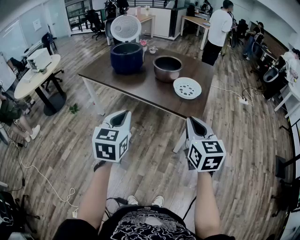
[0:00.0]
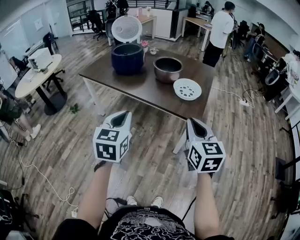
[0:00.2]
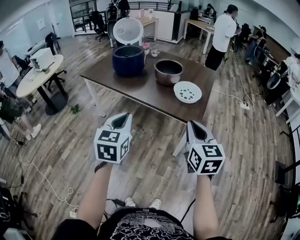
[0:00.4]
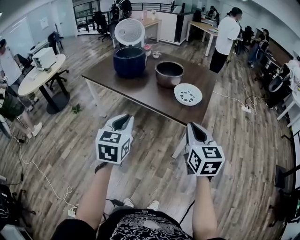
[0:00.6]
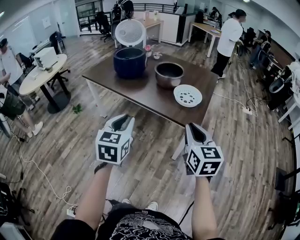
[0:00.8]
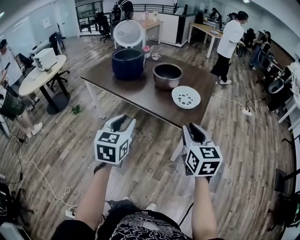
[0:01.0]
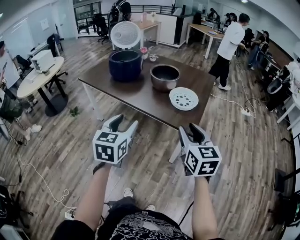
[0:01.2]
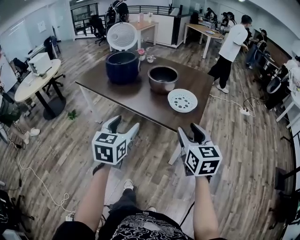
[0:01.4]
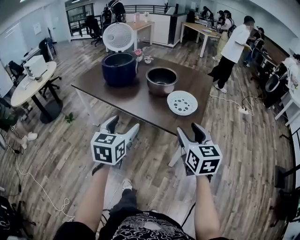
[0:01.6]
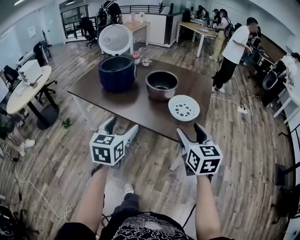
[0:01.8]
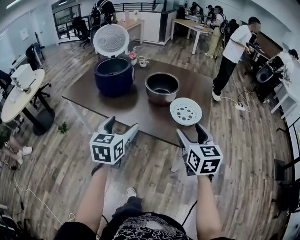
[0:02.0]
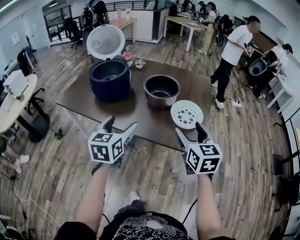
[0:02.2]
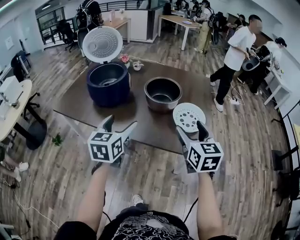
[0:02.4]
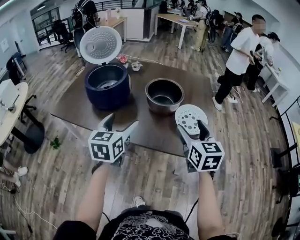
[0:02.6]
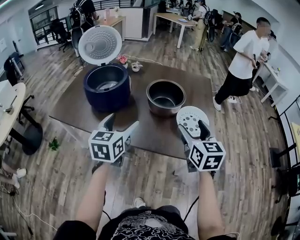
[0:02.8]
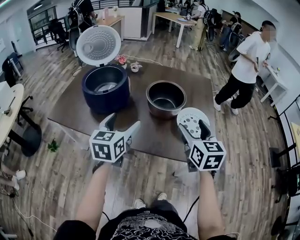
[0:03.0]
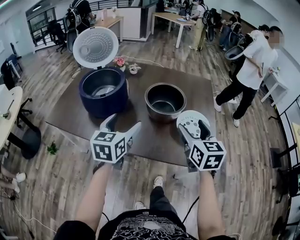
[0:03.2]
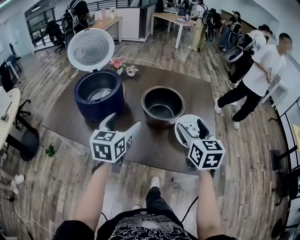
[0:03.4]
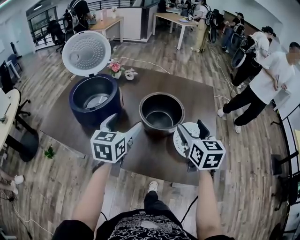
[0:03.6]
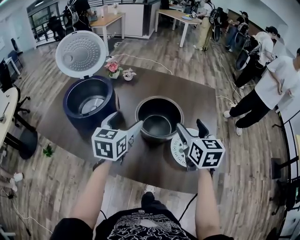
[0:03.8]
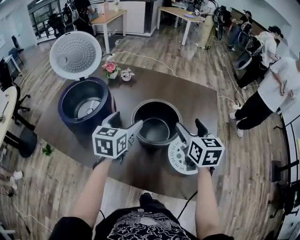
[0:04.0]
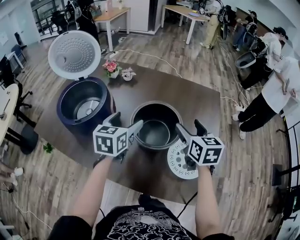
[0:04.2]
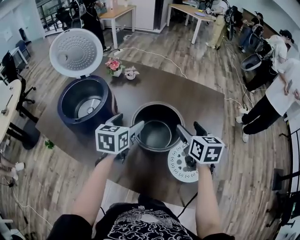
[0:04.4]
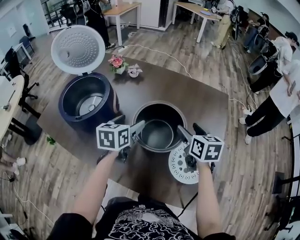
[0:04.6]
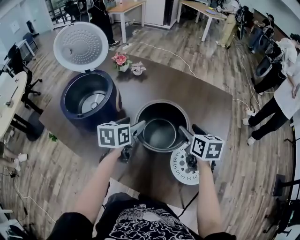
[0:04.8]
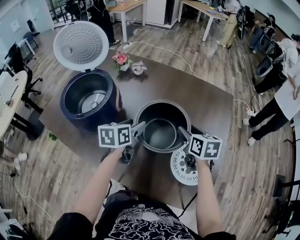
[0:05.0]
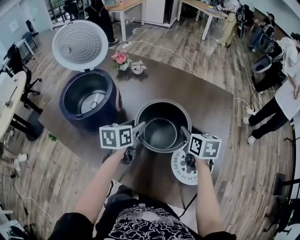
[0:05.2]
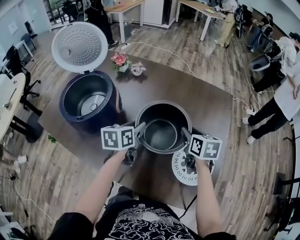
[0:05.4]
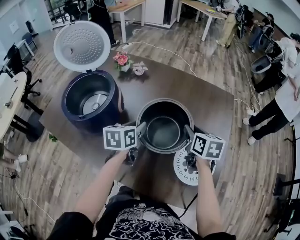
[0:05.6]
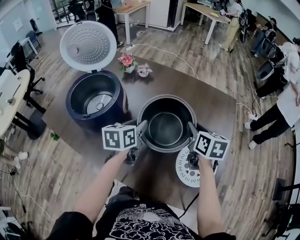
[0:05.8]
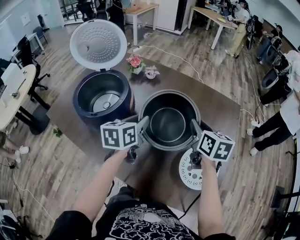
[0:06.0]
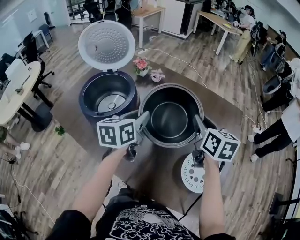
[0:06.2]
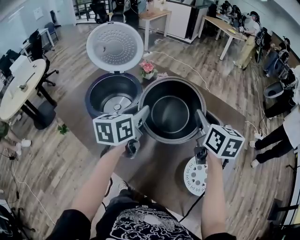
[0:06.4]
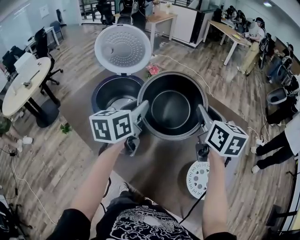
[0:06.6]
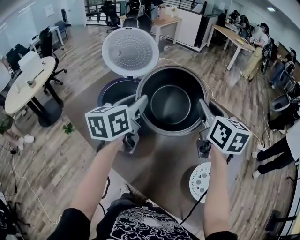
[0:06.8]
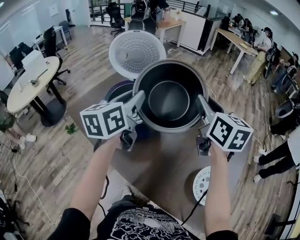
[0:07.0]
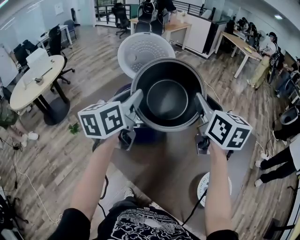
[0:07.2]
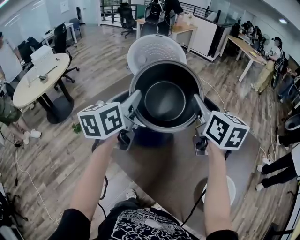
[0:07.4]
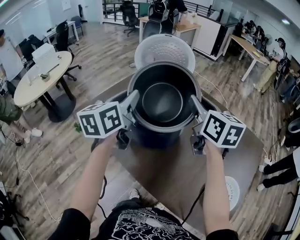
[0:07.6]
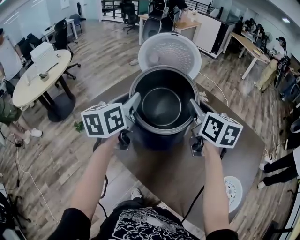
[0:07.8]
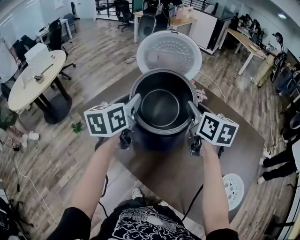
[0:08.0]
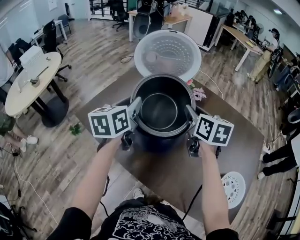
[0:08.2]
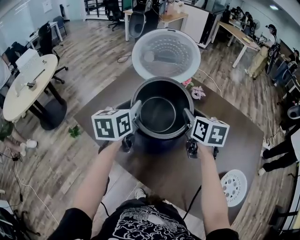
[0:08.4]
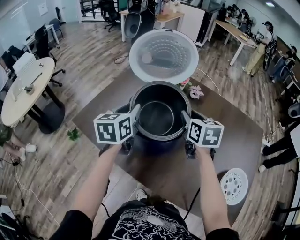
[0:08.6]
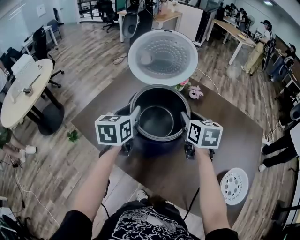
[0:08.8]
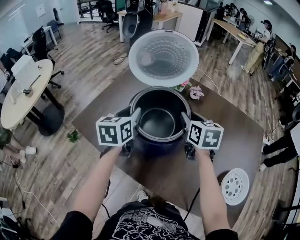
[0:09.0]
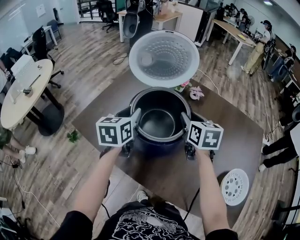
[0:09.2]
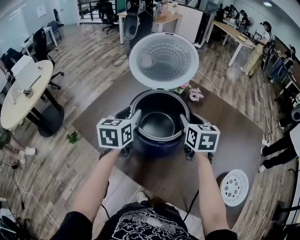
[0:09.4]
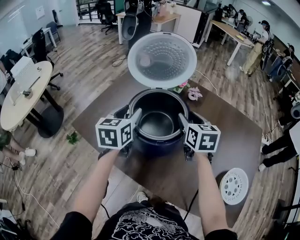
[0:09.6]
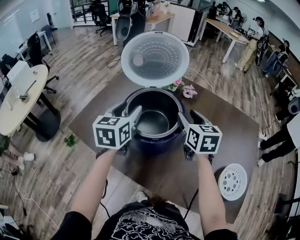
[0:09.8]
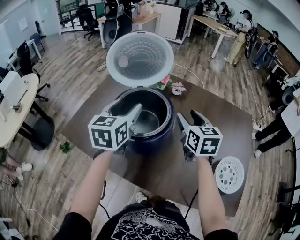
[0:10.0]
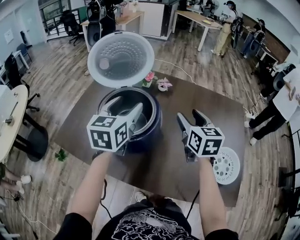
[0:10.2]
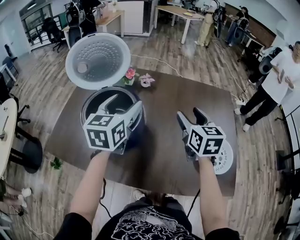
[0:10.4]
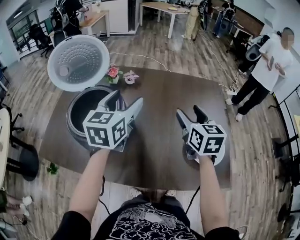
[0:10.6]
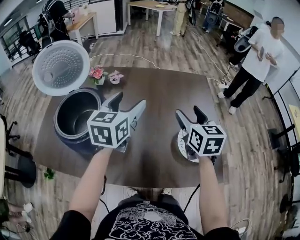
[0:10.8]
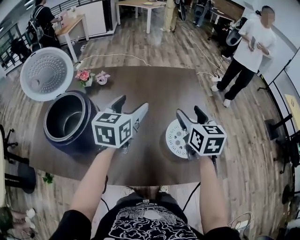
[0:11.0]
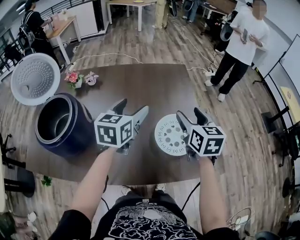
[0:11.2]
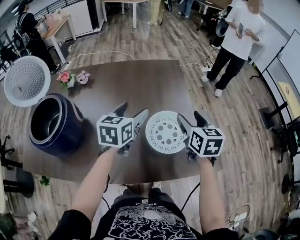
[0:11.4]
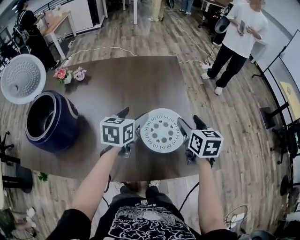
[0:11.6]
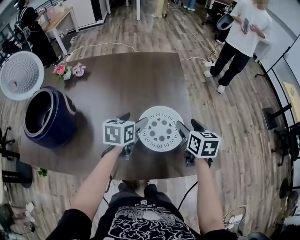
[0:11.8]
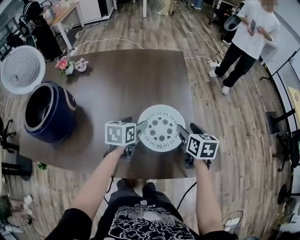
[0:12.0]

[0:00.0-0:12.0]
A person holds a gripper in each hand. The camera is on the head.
0:00.0 to 0:01.6: Both grippers travel together forward, roughly 10 cm. The left gripper opens up. The right gripper opens.
0:01.6 to 0:03.0: The grippers both shift forward and to the left by about 30 cm.
0:03.0 to 0:04.4: Both grippers move forward, approximately 25 cm.
0:04.4 to 0:06.0: The left gripper closes its fingers, while the right gripper goes downward and returns, roughly 5 cm each way, and closes up.
0:06.0 to 0:07.6: Both grippers travel together to the left and upward, about 35 cm. The right gripper swivels some 30 degrees, while the left gripper changes its angle by some 30 degrees.
0:07.6 to 0:09.0: The right gripper shifts some 15 cm downward, and turns by about 20 degrees. The left gripper heads downward and forward, covering some 15 cm.
0:09.0 to 0:10.4: The left gripper moves to the right and upward, about 20 cm, turns by about 30 degrees, and opens its fingers, while the right gripper goes about 20 cm to the right and backward, changes its angle by some 20 degrees, and opens.
0:10.4 to 0:12.0: Both grippers travel together to the right and downward, some 40 cm. The left gripper changes its angle by about 40 degrees, while the right gripper rotates roughly 30 degrees.

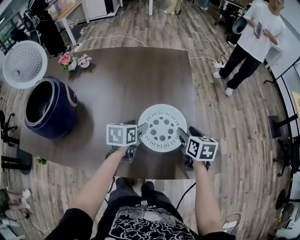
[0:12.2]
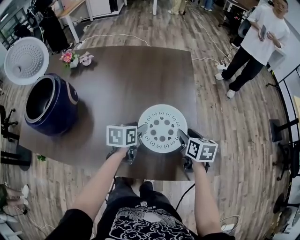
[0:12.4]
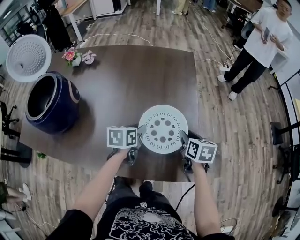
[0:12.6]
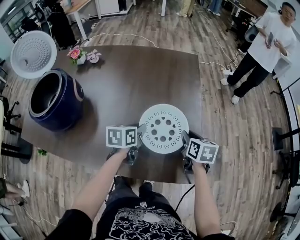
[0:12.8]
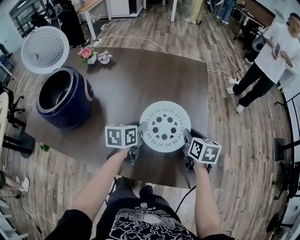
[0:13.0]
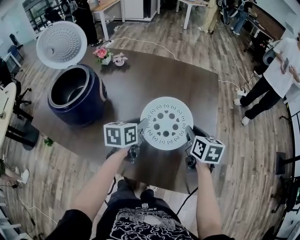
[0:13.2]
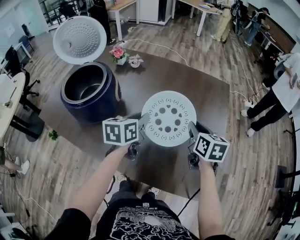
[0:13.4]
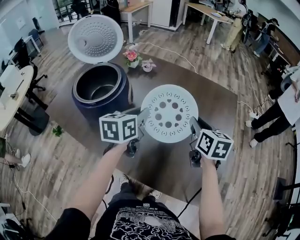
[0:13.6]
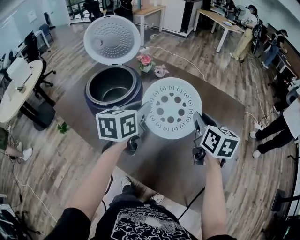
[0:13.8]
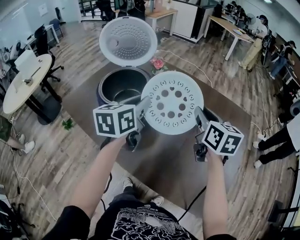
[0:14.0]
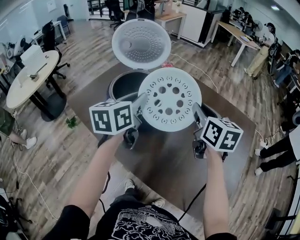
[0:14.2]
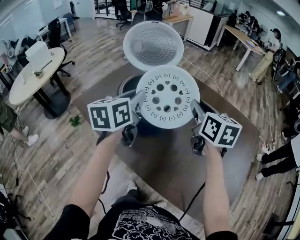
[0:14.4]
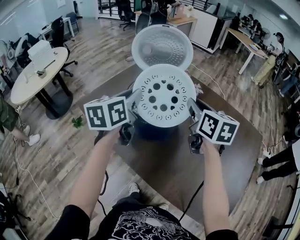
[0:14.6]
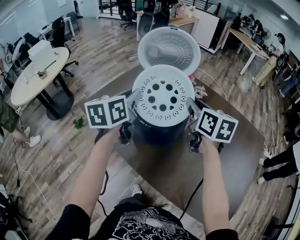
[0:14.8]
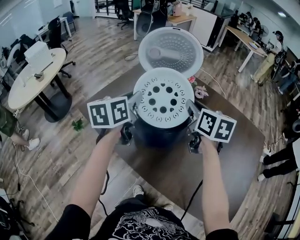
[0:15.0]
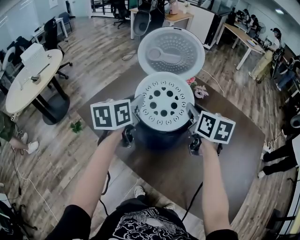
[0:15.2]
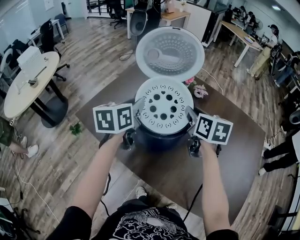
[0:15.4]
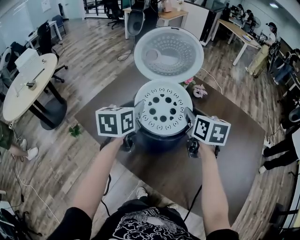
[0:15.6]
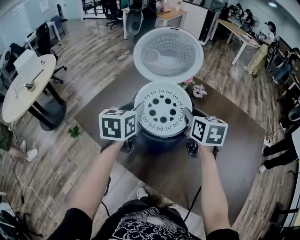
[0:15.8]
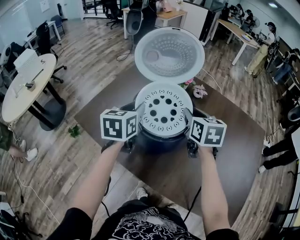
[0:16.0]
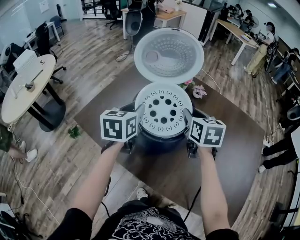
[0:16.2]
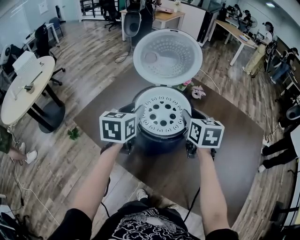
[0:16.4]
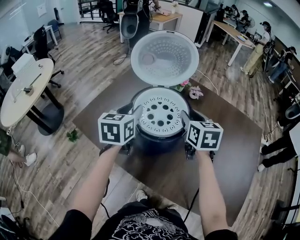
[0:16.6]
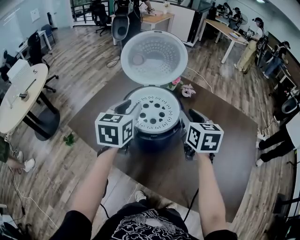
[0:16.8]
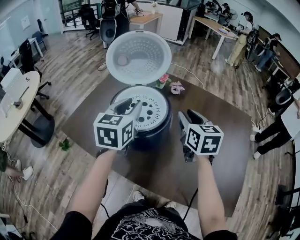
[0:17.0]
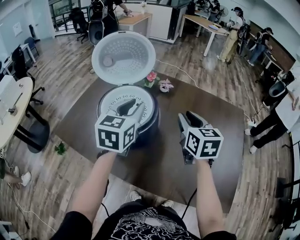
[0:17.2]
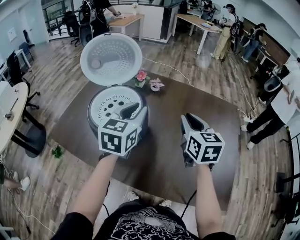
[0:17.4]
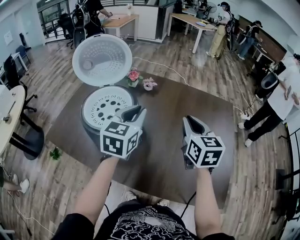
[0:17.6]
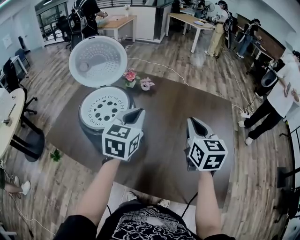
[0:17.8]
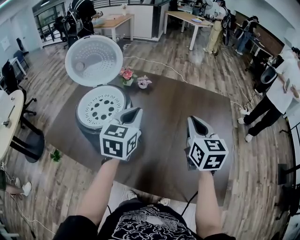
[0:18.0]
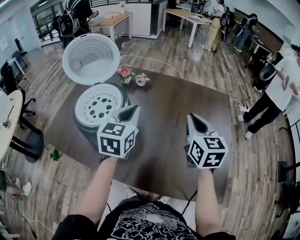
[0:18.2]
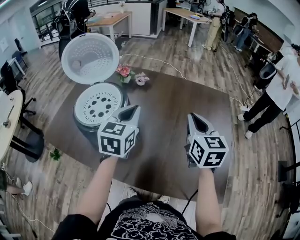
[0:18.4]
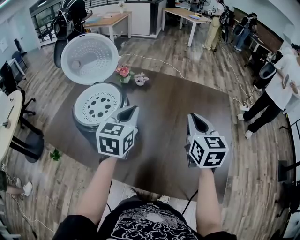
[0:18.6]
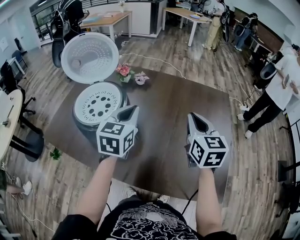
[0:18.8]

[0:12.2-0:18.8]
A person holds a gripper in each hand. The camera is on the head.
0:12.2 to 0:13.8: The left gripper moves about 35 cm, turns by roughly 40 degrees, and closes. The right gripper moves approximately 35 cm, swivels some 30 degrees, and closes its fingers.
0:13.8 to 0:15.4: Both grippers travel together to the left and forward, some 30 cm.
0:15.4 to 0:17.2: The left gripper goes some 15 cm to the right, and changes its angle by about 30 degrees, while the right gripper heads to the right and backward, covering approximately 15 cm.
0:17.2 to 0:18.8: Both grippers travel together to the right, approximately 15 cm.

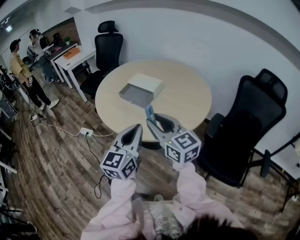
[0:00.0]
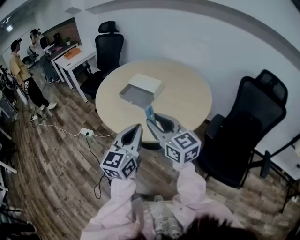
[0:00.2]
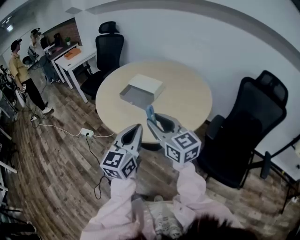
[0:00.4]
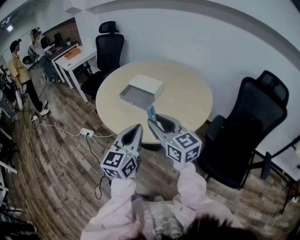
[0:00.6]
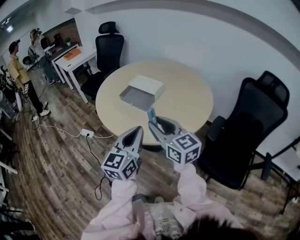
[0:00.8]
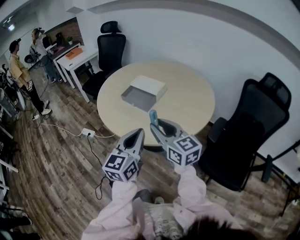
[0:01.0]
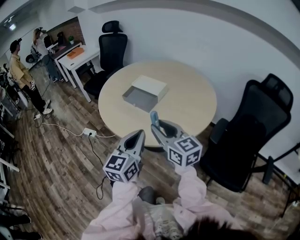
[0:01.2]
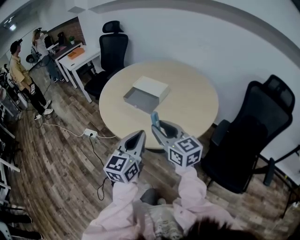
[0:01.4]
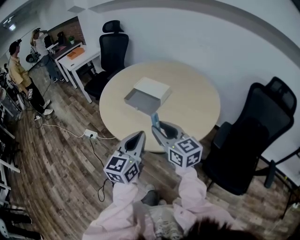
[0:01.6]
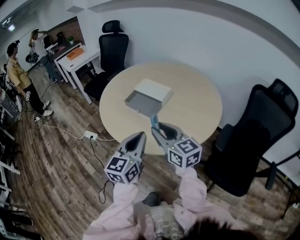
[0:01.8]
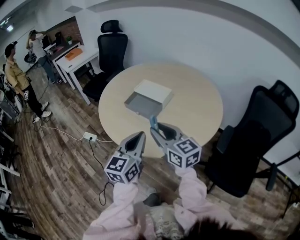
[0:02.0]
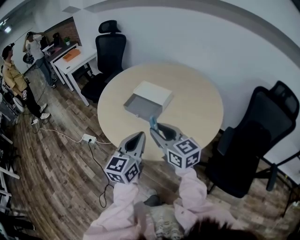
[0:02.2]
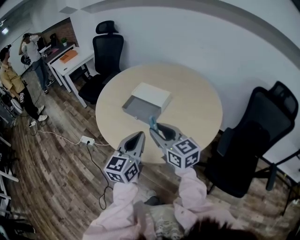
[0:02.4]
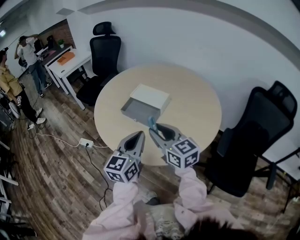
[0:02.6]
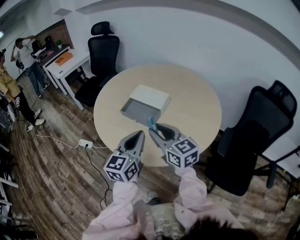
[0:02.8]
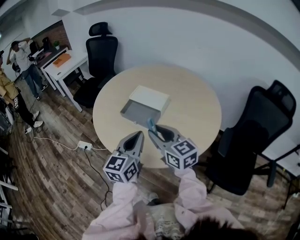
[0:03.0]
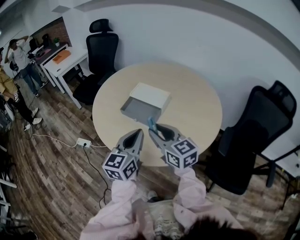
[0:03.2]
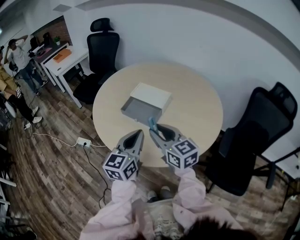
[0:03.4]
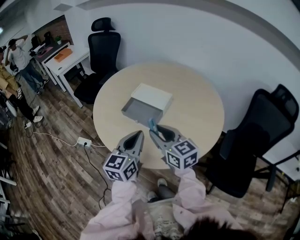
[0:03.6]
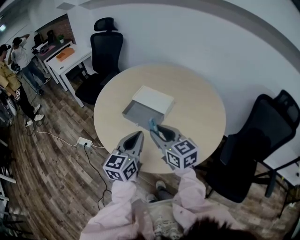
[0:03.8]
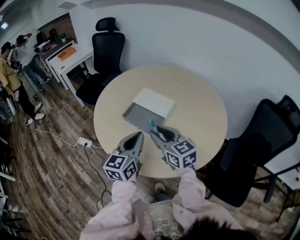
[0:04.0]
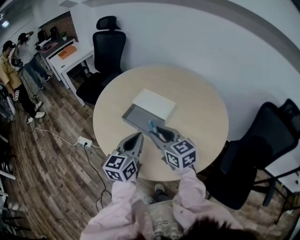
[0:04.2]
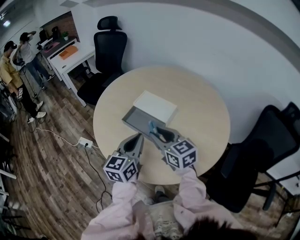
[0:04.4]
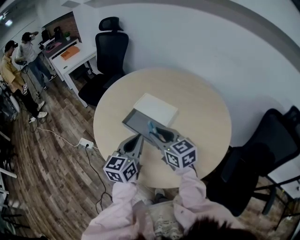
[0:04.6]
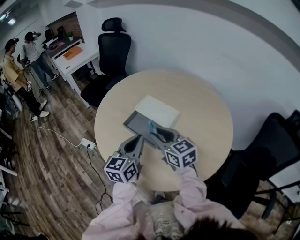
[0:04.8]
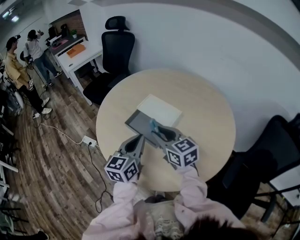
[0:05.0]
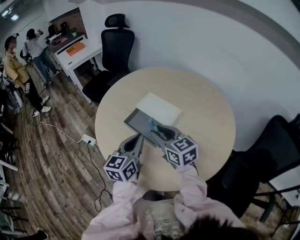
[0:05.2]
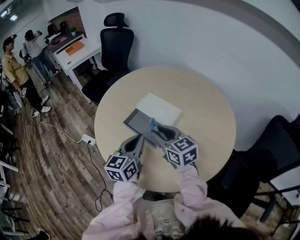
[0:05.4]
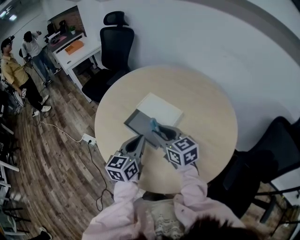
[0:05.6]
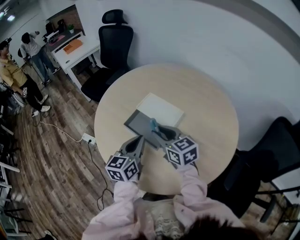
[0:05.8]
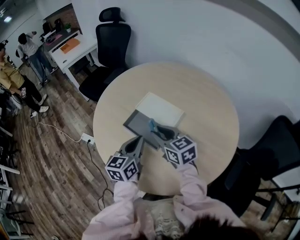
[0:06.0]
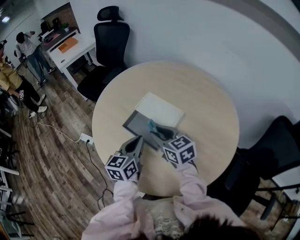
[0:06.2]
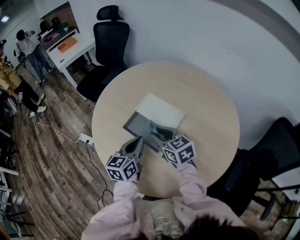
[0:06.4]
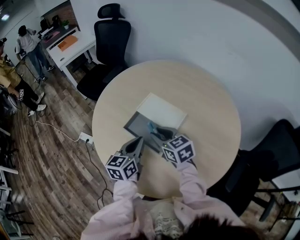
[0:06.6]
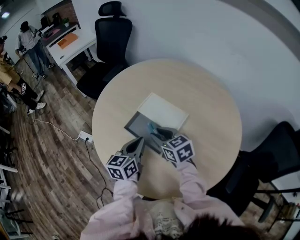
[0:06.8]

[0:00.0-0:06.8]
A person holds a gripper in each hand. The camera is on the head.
0:00.0 to 0:01.4: The right gripper moves approximately 5 cm.
0:01.4 to 0:02.8: The grippers both shift forward by approximately 10 cm.
0:02.8 to 0:04.0: The two grippers go some 5 cm forward.
0:04.0 to 0:05.4: The two grippers go about 10 cm forward.
0:05.4 to 0:06.8: Both grippers move downward and forward, approximately 10 cm.
